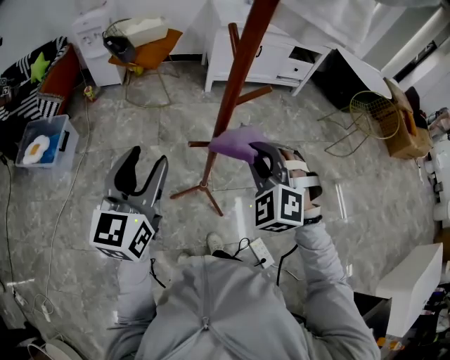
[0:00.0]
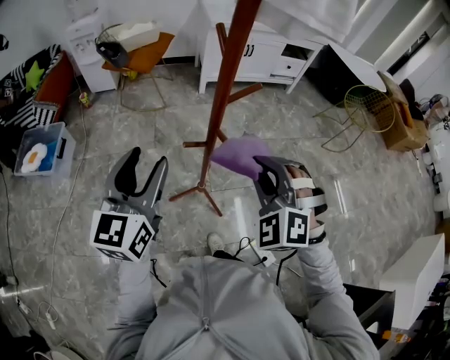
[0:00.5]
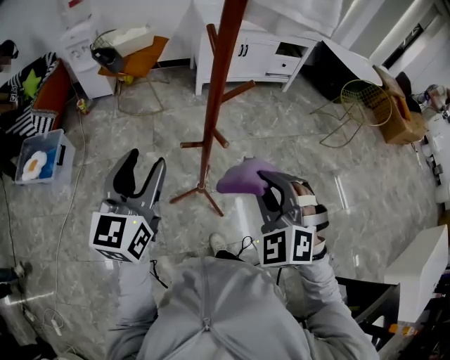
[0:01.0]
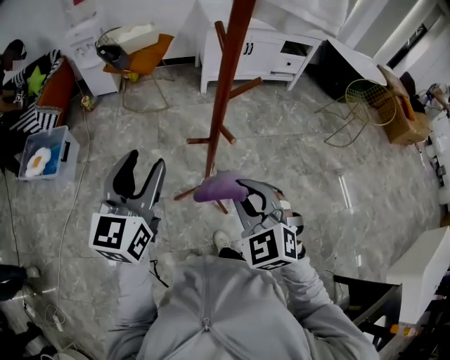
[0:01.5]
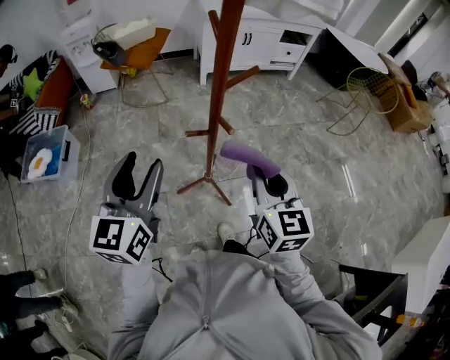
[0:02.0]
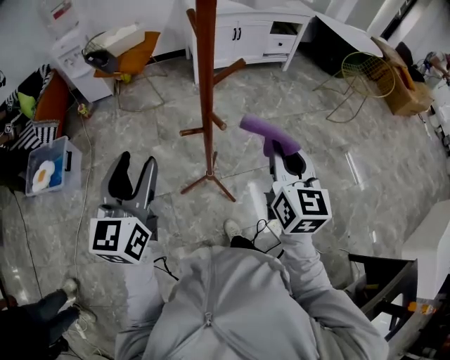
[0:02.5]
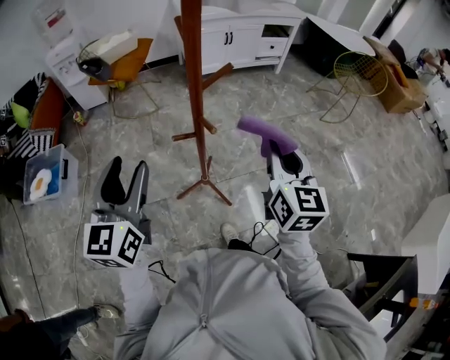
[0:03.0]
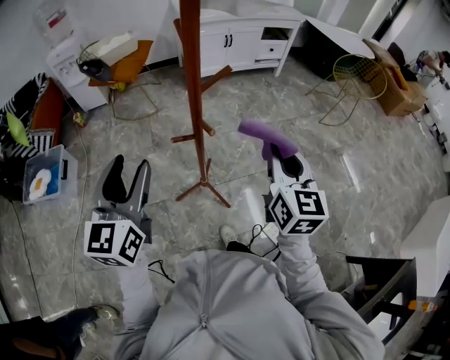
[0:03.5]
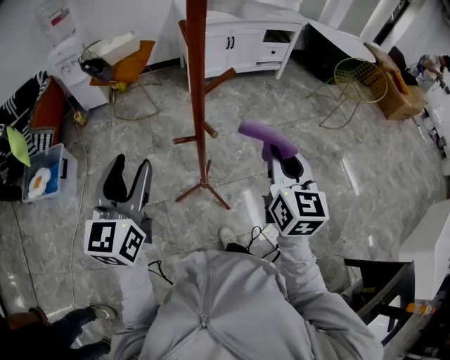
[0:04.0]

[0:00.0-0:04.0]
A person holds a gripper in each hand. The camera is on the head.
0:00.0 to 0:02.0: The right gripper travels backward by about 5 cm, and rotates around the line of its fingers by about 70 degrees, clockwise from behind.
0:02.0 to 0:04.0: The right gripper travels to the right by approximately 5 cm.

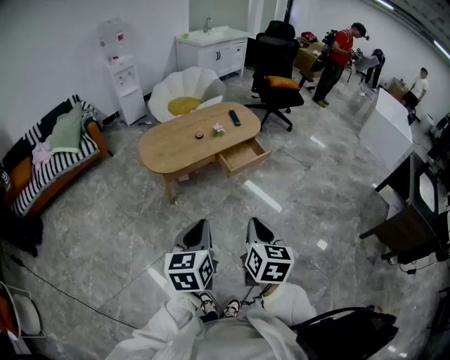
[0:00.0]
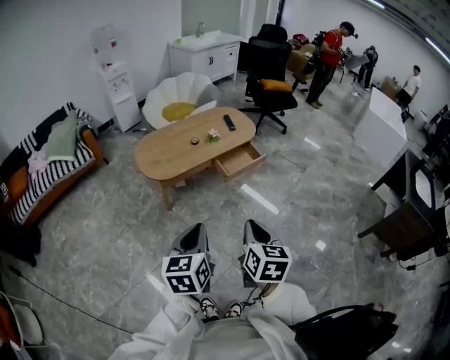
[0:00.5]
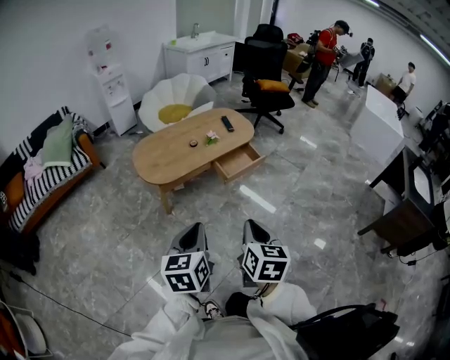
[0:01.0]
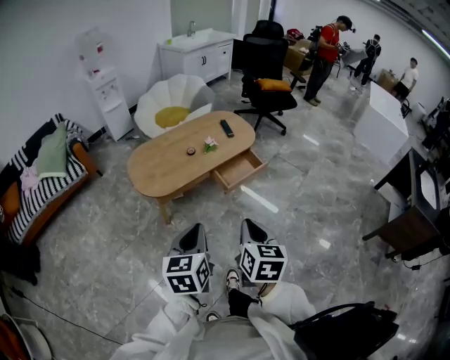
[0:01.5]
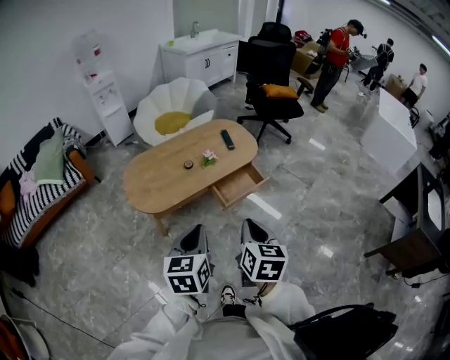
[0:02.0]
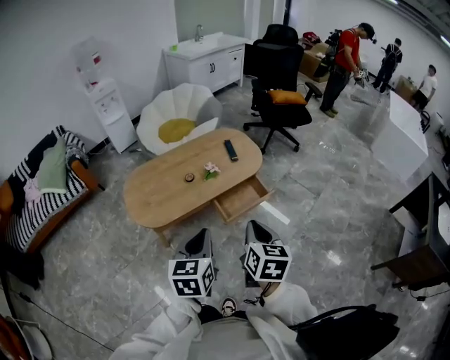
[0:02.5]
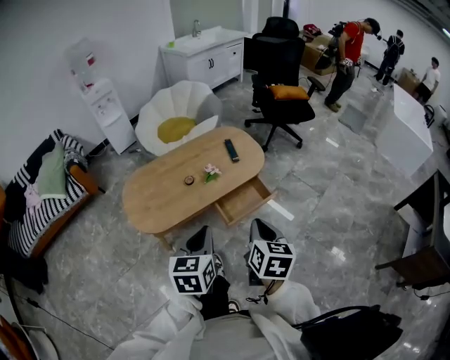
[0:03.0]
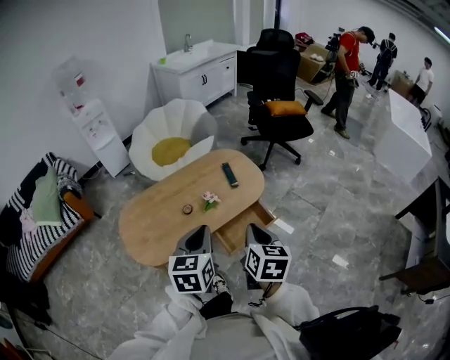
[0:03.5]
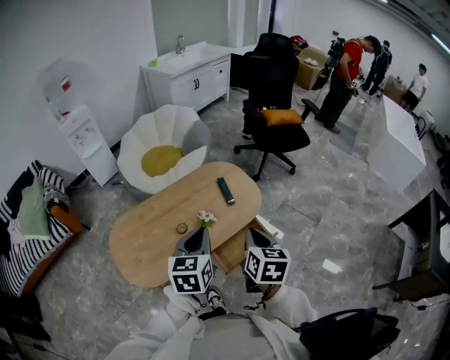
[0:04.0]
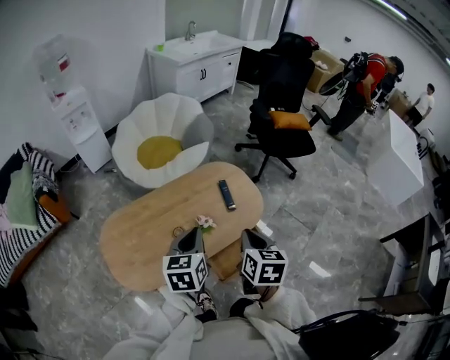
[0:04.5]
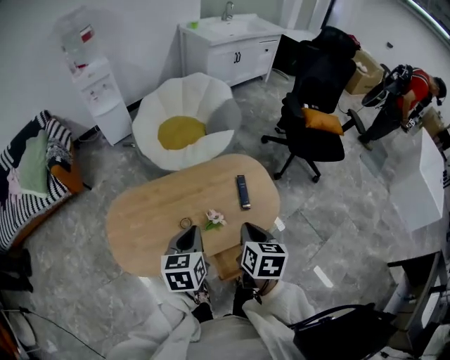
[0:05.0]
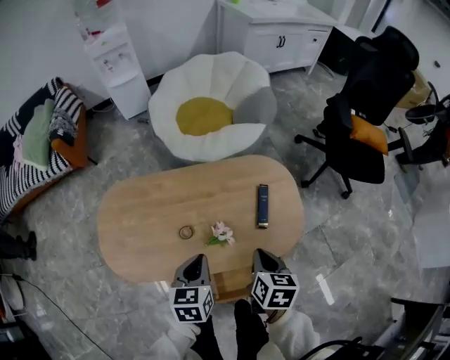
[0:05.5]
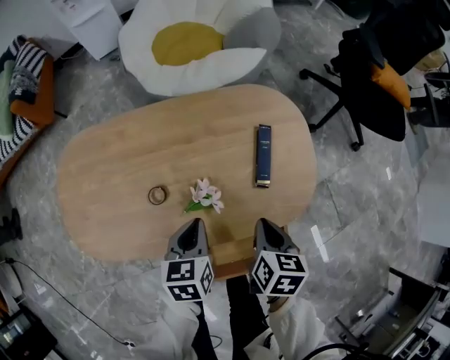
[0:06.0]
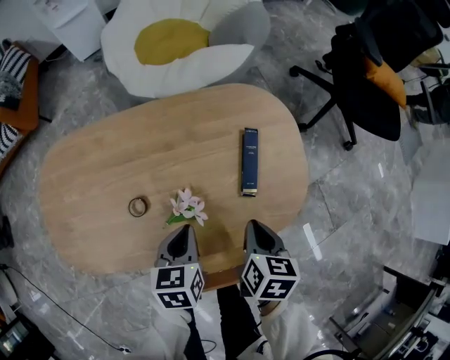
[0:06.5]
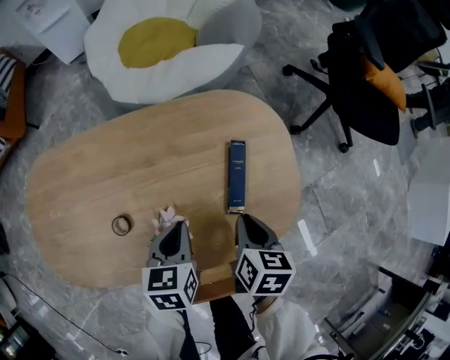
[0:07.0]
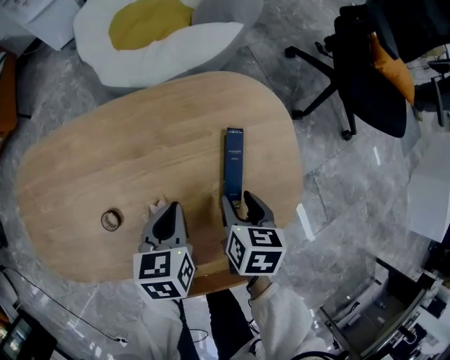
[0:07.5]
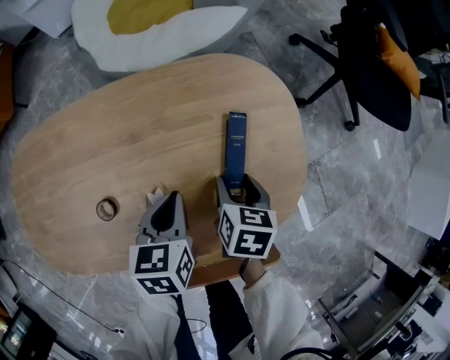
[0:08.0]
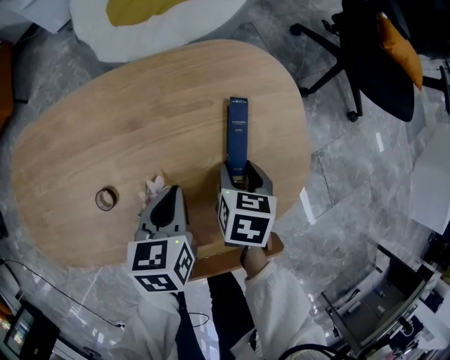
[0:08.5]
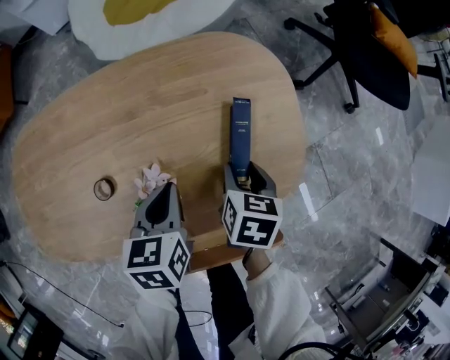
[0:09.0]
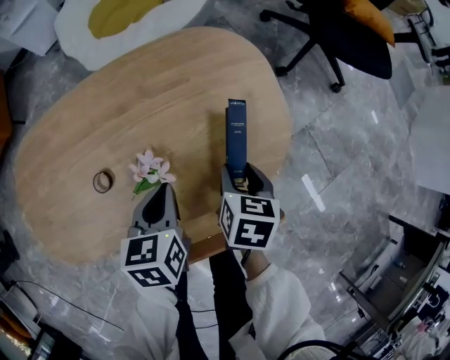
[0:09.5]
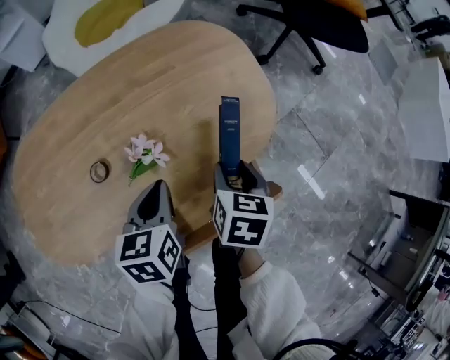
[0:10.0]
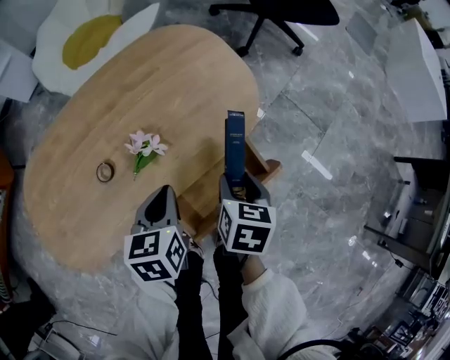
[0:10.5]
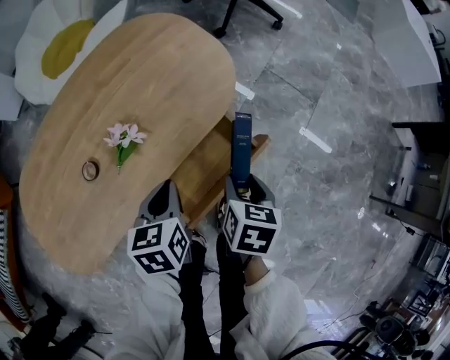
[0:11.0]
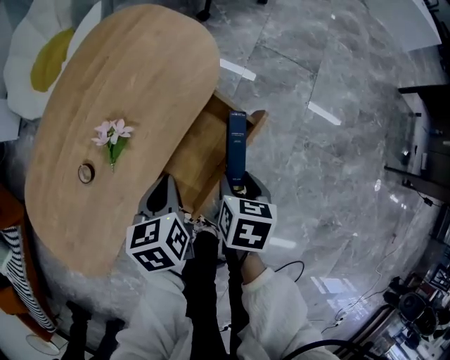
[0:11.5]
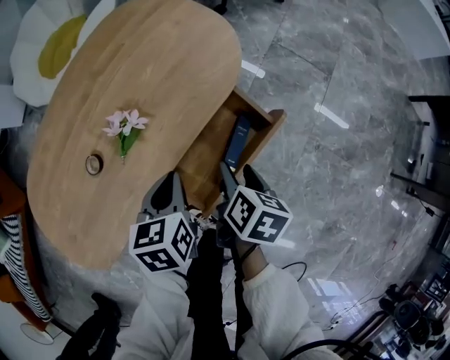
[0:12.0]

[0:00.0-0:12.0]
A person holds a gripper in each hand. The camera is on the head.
0:00.0 to 0:02.0: The two grippers go roughly 25 cm forward.
0:02.0 to 0:04.0: The two grippers go roughly 35 cm forward.
0:04.0 to 0:06.0: The two grippers go approximately 40 cm downward and forward. The right gripper changes its angle by about 30 degrees, while the left gripper changes its angle by some 40 degrees.
0:06.0 to 0:08.0: The right gripper is displaced forward and downward by about 15 cm, and opens its fingers, while the left gripper is displaced forward, downward and to the right by approximately 15 cm.
0:08.0 to 0:10.0: The left gripper is displaced backward by roughly 10 cm. The right gripper shifts about 15 cm backward and upward.
0:10.0 to 0:12.0: The right gripper shifts approximately 20 cm backward and to the right, and rolls clockwise, seen from behind, by some 40 degrees; the left gripper moves backward and to the right, approximately 10 cm, and turns by approximately 20 degrees.

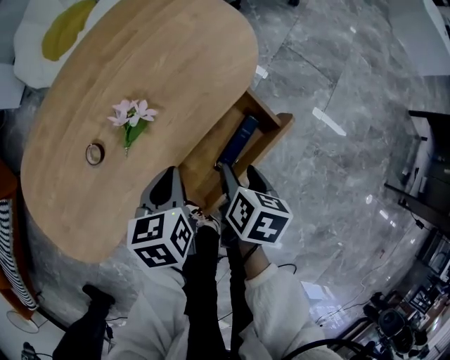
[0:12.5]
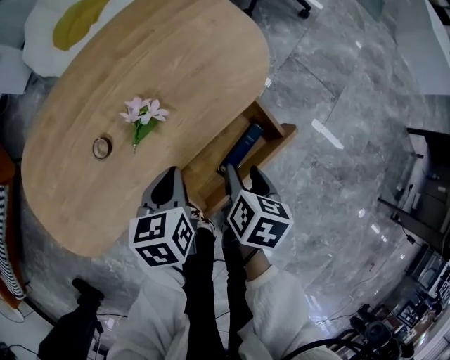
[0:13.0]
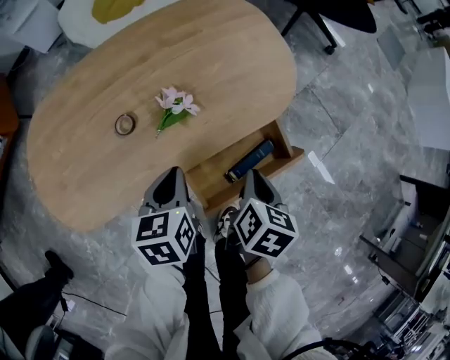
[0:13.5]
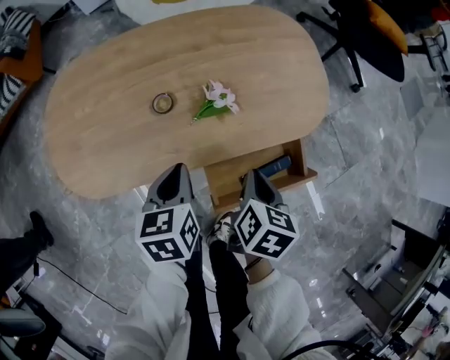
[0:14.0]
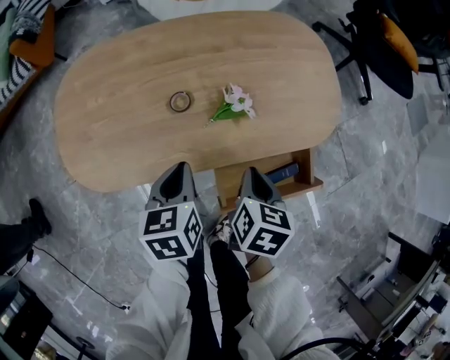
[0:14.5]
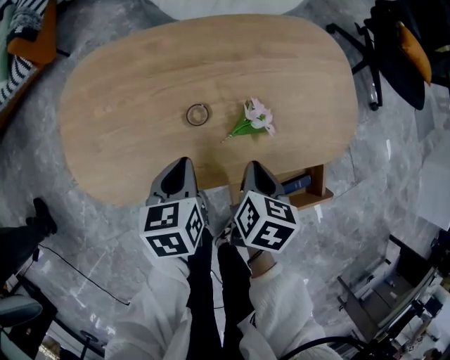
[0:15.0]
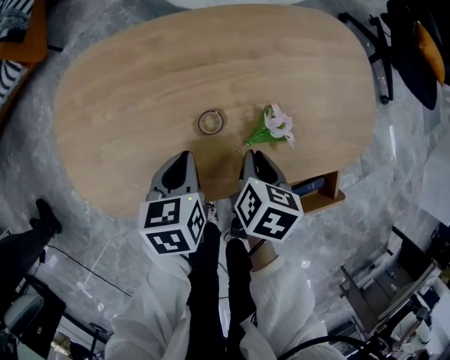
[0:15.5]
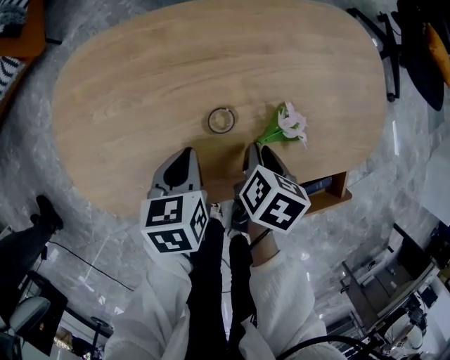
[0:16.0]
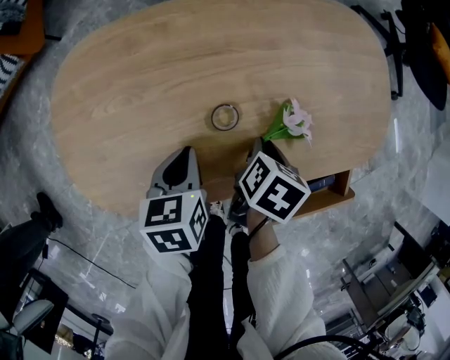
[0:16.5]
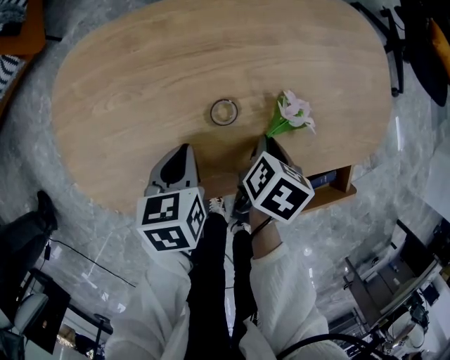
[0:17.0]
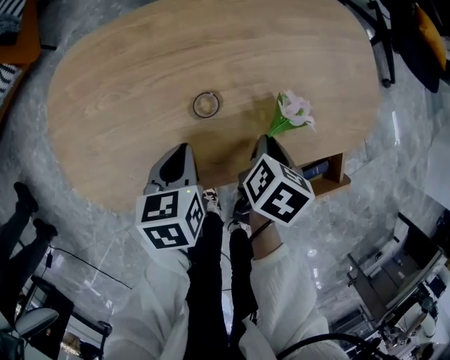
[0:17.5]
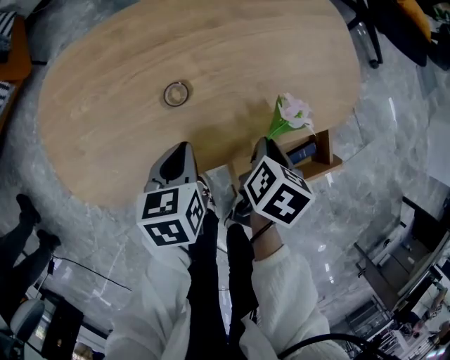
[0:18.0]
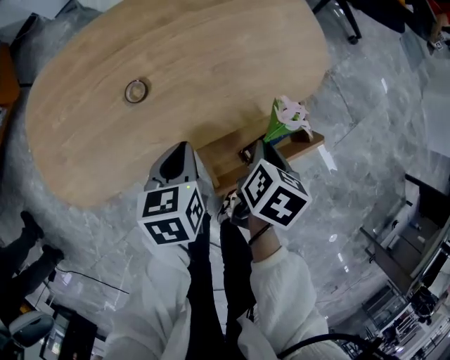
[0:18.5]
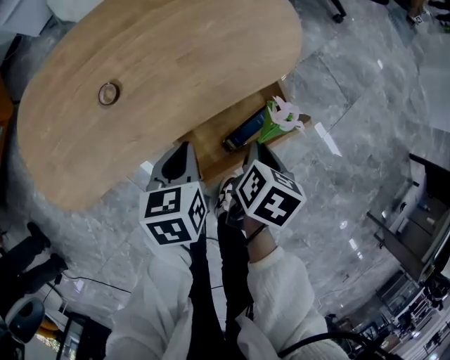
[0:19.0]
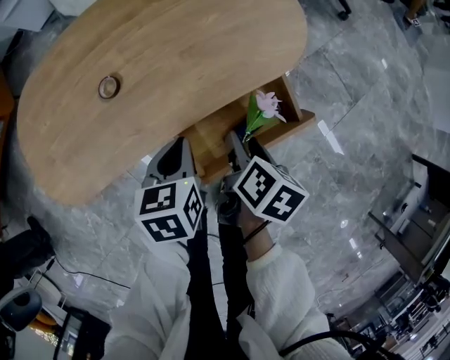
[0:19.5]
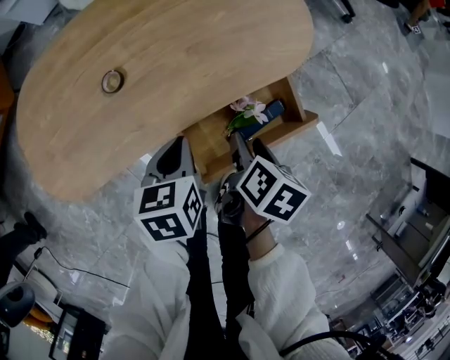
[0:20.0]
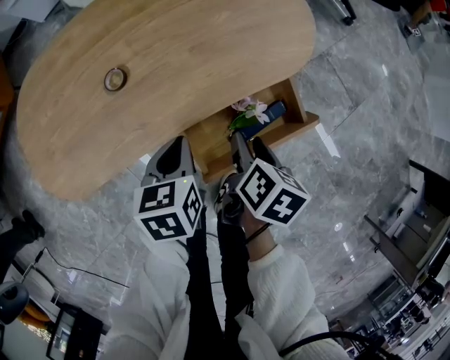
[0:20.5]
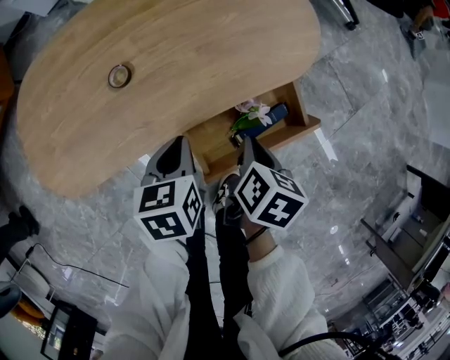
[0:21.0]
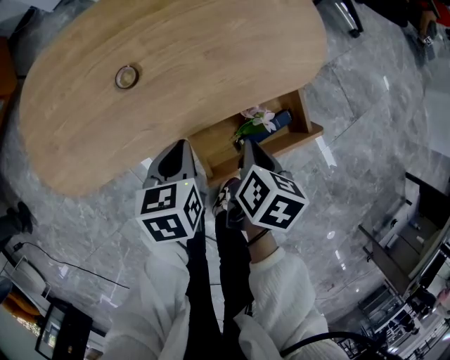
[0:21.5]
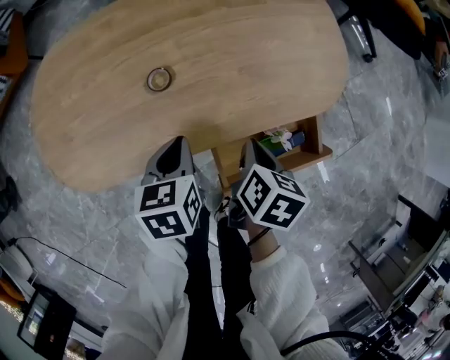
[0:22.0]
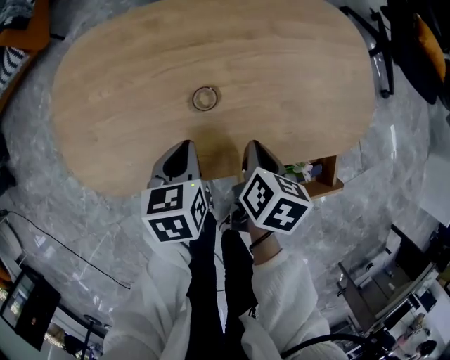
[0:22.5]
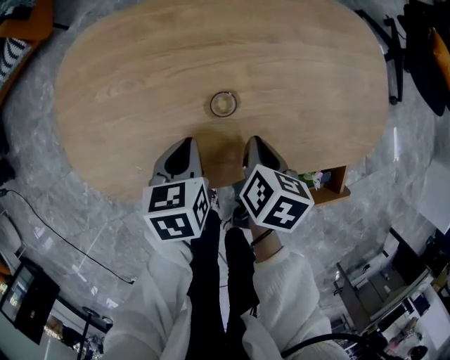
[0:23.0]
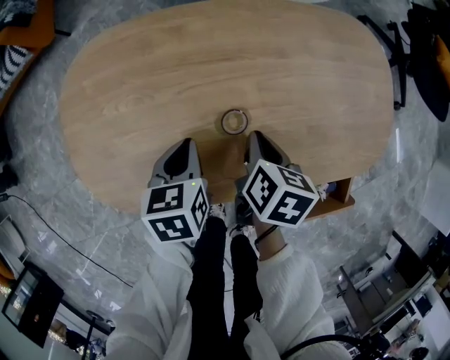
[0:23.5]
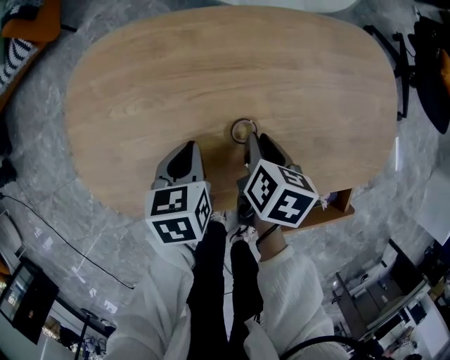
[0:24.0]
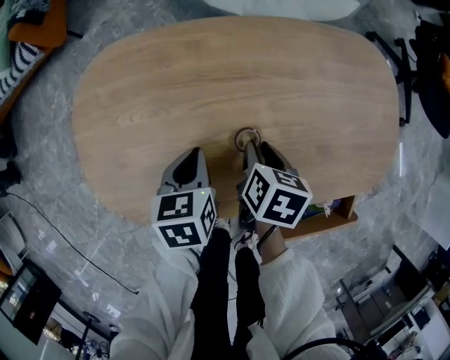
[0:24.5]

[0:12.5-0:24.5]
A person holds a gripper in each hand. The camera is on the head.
0:12.5 to 0:14.5: The left gripper ends up about 15 cm from where it was, and turns by roughly 30 degrees, while the right gripper shifts by some 15 cm, swivels roughly 40 degrees, and closes up.
0:14.5 to 0:16.5: The left gripper travels to the left, downward and forward by some 15 cm. The right gripper heads downward, forward and to the left, covering about 15 cm.
0:16.5 to 0:18.5: Both grippers travel together to the right, about 20 cm.
0:18.5 to 0:20.5: The right gripper opens its fingers, while the left gripper moves some 5 cm.
0:20.5 to 0:22.5: The left gripper heads to the left, covering some 15 cm. Meanwhile the right gripper shifts about 20 cm to the left and forward, turns by about 20 degrees, and closes up.
0:22.5 to 0:24.5: Both grippers move to the left and forward, roughly 10 cm. The right gripper opens up.
